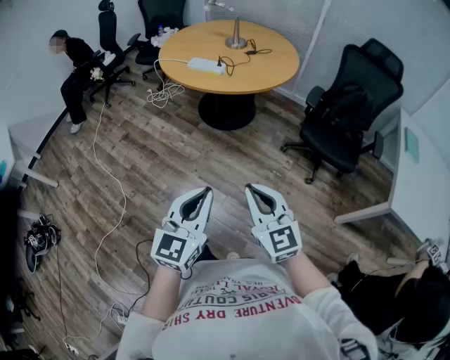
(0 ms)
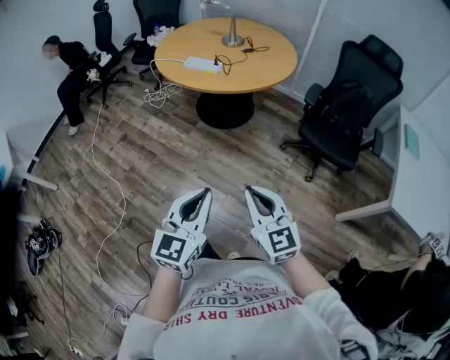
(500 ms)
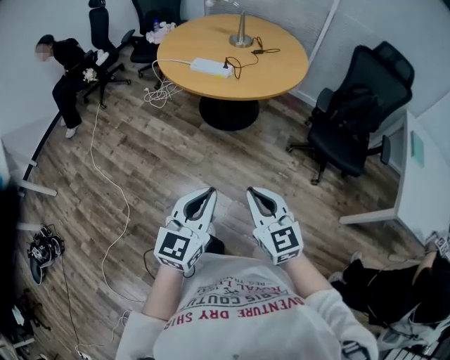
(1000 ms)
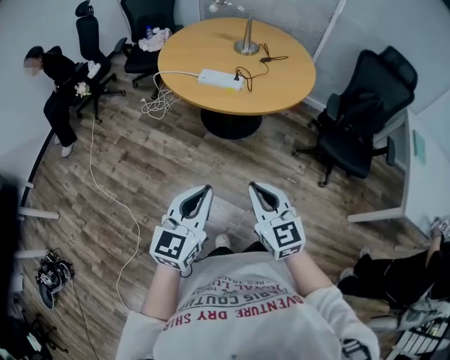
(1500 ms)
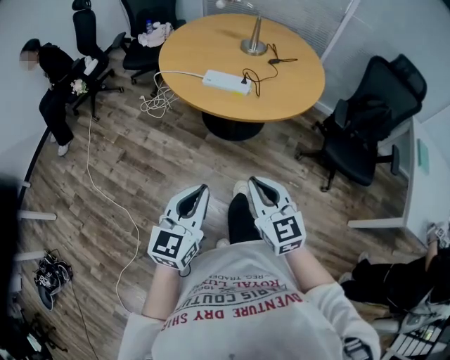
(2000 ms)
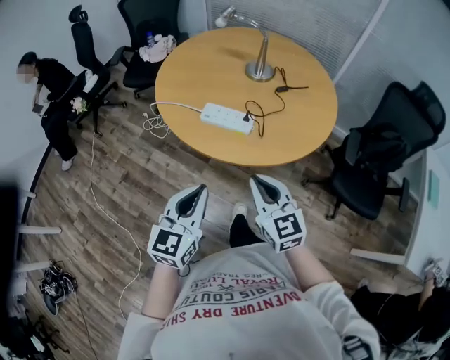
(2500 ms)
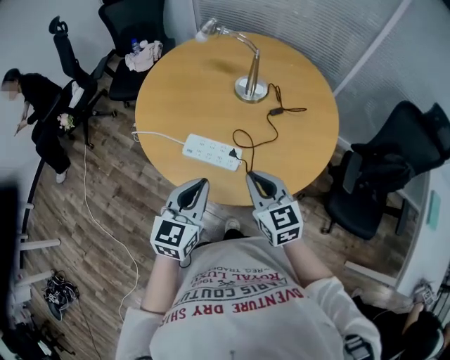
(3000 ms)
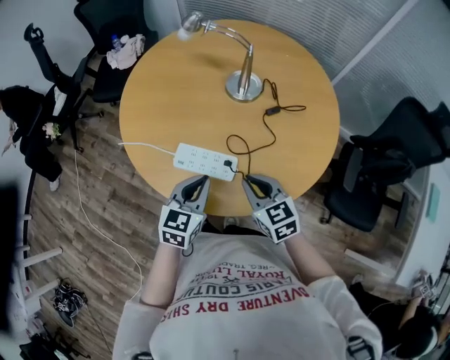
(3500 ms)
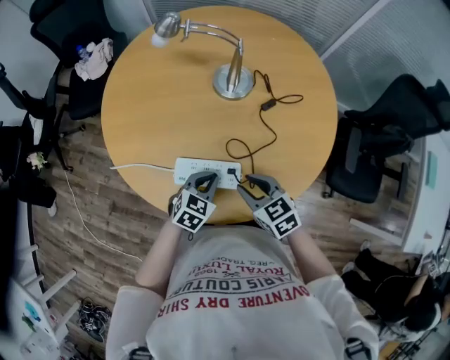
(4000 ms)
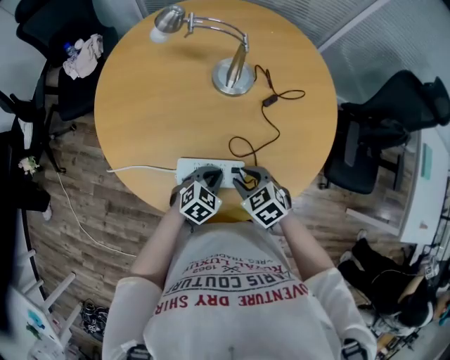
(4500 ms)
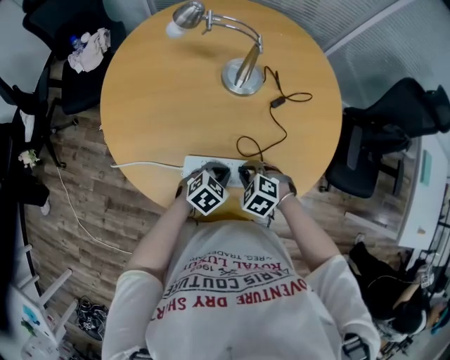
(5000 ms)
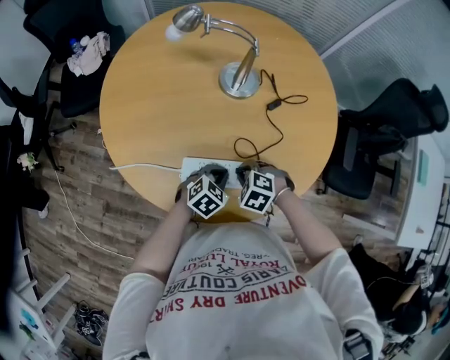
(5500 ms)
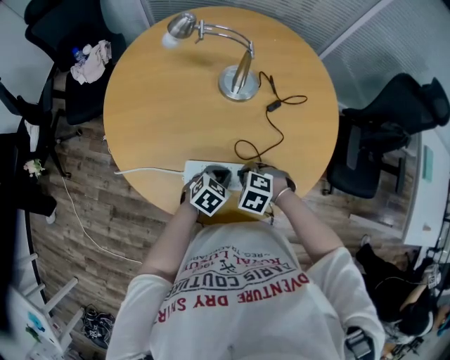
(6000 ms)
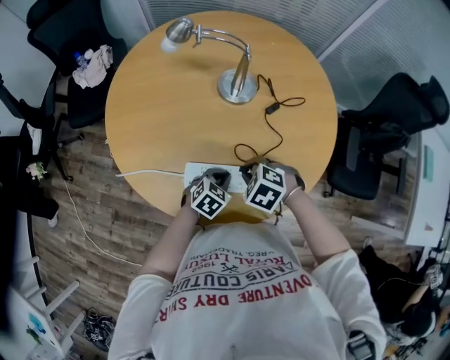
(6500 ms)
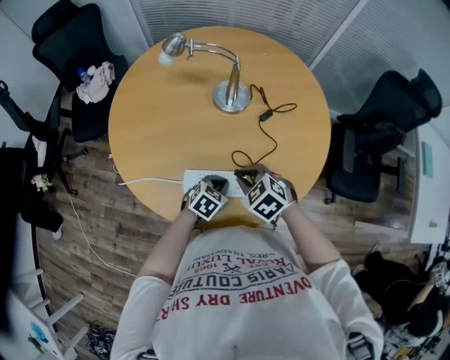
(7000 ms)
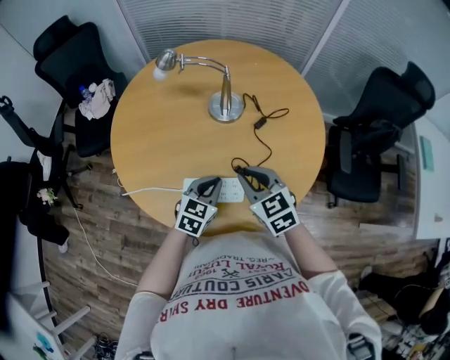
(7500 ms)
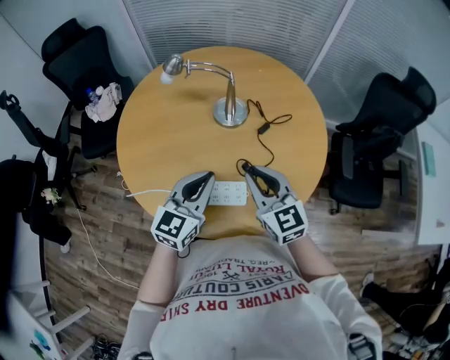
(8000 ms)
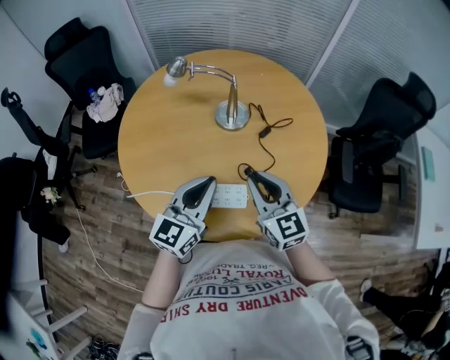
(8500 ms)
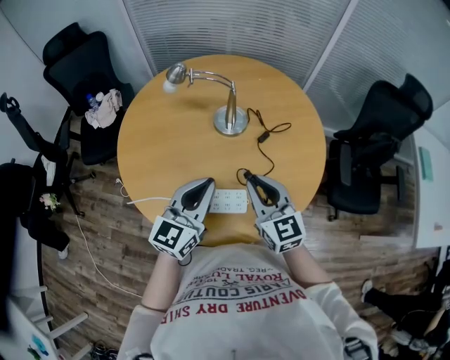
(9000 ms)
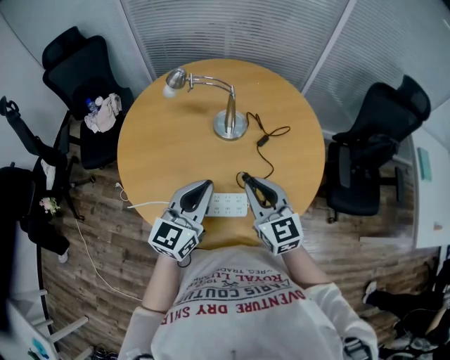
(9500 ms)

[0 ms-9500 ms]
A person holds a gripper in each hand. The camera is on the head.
0 ms to 2000 ms: Both grippers move forward and to the left, roughly 35 cm.
2000 ms to 4000 ms: The two grippers travel together, forward, approximately 50 cm. The right gripper swivels approximately 30 degrees, and opens. Meanwhile the left gripper is displaced downward by about 25 cm, and tilts its fingers about 40 degrees downward.
4000 ms to 5500 ms: The right gripper travels downward by approximately 10 cm, and angles its fingers downward, by approximately 30 degrees.
5500 ms to 7500 ms: The left gripper travels upward by approximately 10 cm, and rotates roughly 20 degrees. The right gripper moves upward, some 20 cm, and points its fingers about 40 degrees further upward.
7500 ms to 9500 ms: The right gripper is displaced upward by approximately 5 cm, and changes its angle by roughly 20 degrees, while the left gripper heads upward, covering roughly 20 cm, and rotates about 30 degrees.

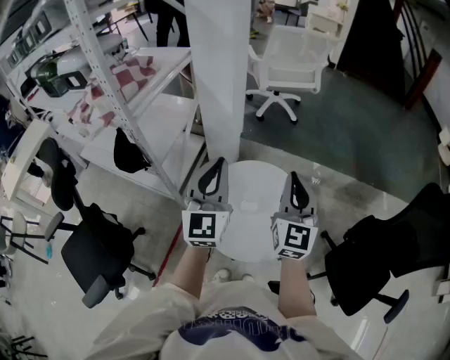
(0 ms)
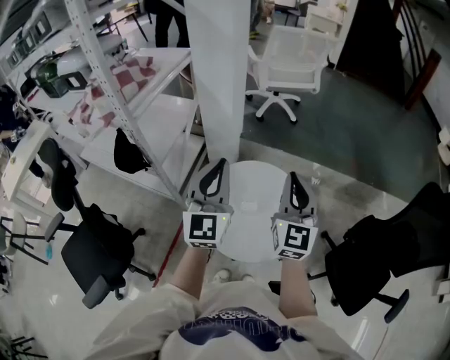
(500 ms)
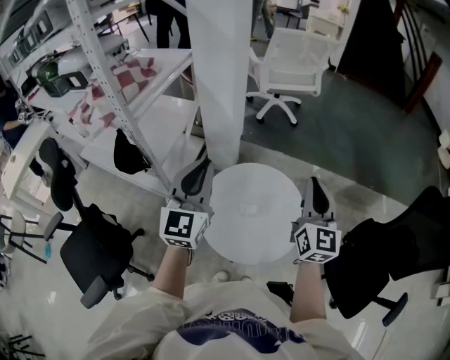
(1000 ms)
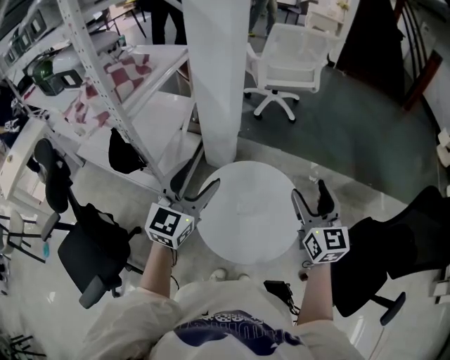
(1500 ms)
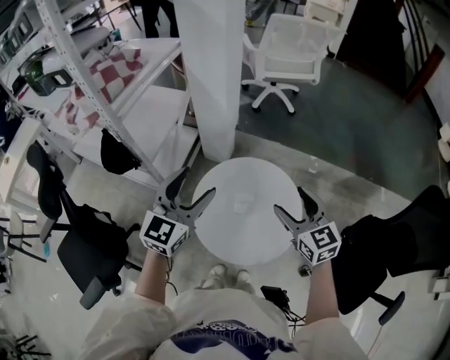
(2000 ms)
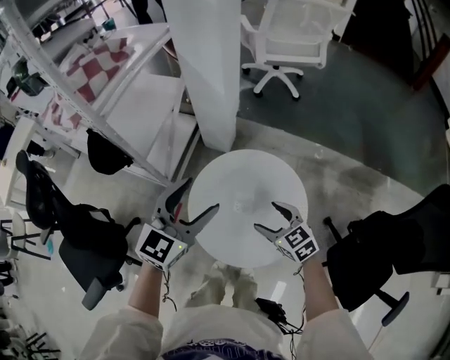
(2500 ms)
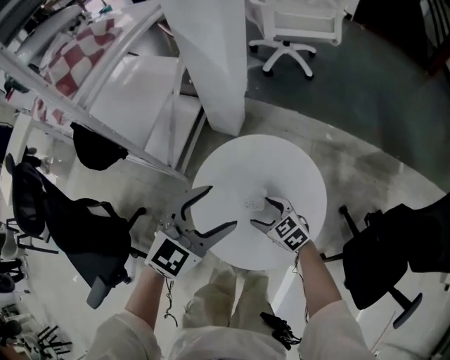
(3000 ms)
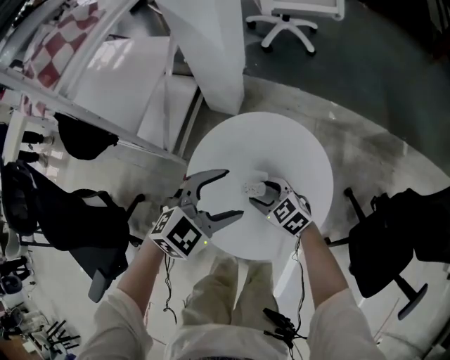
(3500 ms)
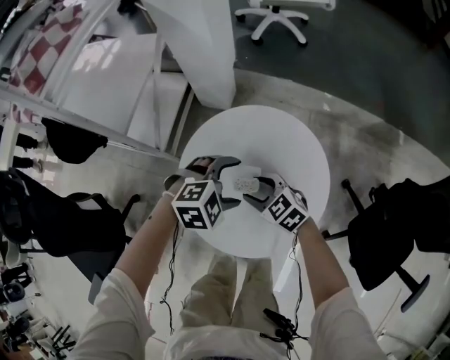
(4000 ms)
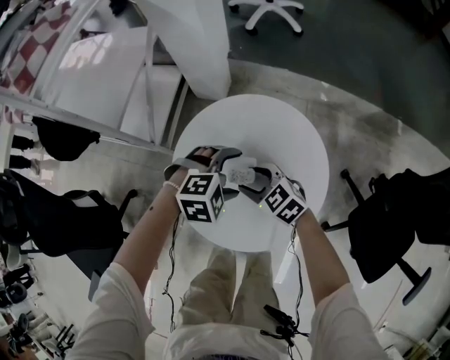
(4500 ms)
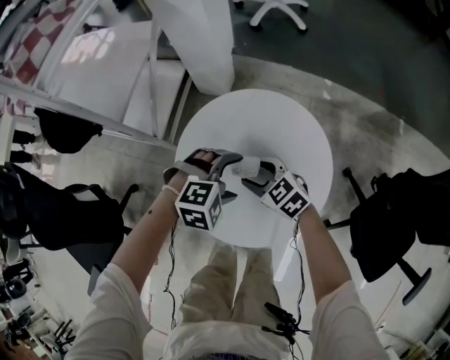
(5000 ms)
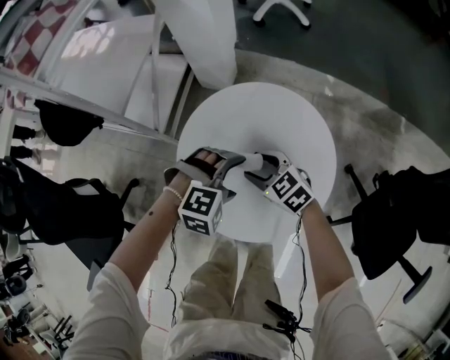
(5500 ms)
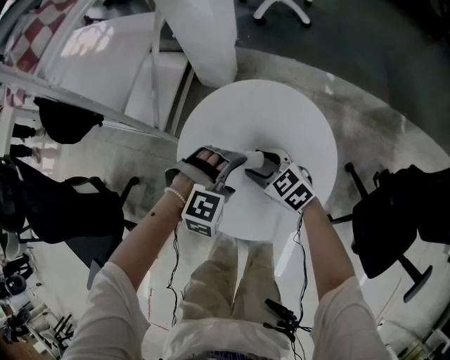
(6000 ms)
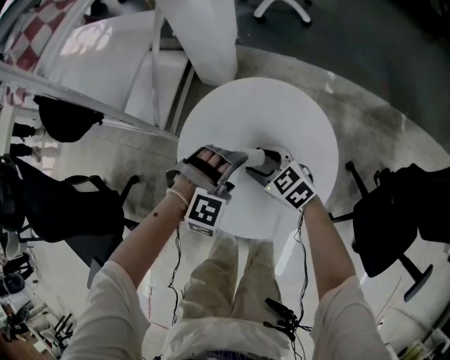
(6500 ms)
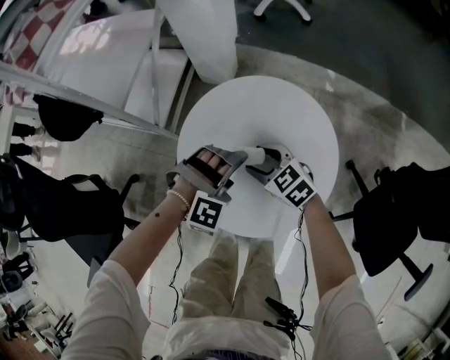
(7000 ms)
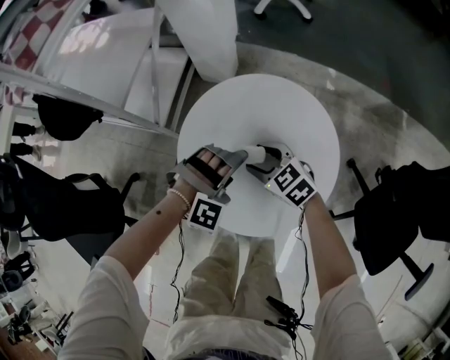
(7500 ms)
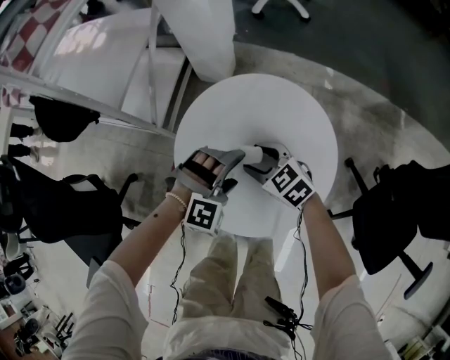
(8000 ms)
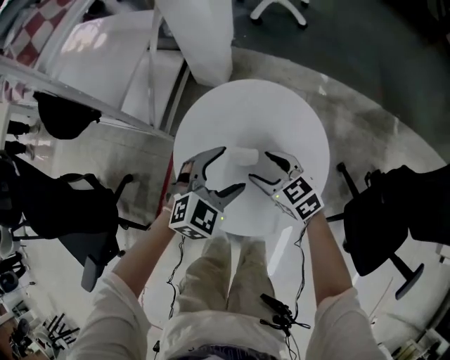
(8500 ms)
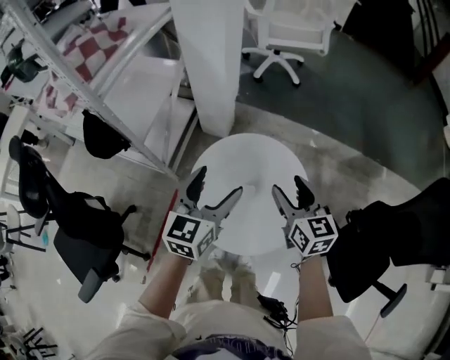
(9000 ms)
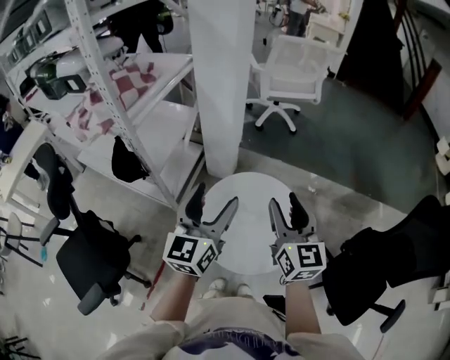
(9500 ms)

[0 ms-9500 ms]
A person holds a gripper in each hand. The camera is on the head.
0 ms to 2000 ms: The right gripper heads downward, covering roughly 10 cm, swivels about 40 degrees, and opens its fingers. Meanwhile the left gripper travels downward by some 5 cm, changes its angle by roughly 20 degrees, and opens.
2000 ms to 4000 ms: The two grippers go about 30 cm downward. The right gripper rotates approximately 30 degrees; the left gripper tips its fingers downward by some 50 degrees.
4000 ms to 5500 ms: The left gripper changes place by roughly 5 cm.
5500 ms to 7500 ms: There are only small adjustments of the grippers.
7500 ms to 9500 ms: The grippers both shift upward by roughly 40 cm. The left gripper angles its fingers upward, by approximately 60 degrees. The right gripper points its fingers roughly 40 degrees further upward.

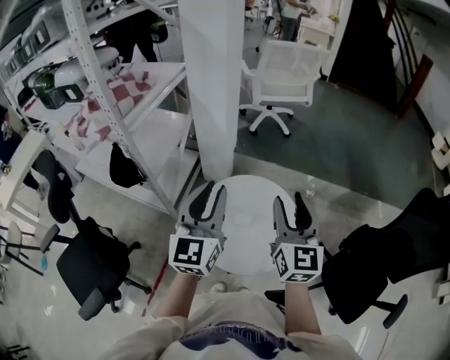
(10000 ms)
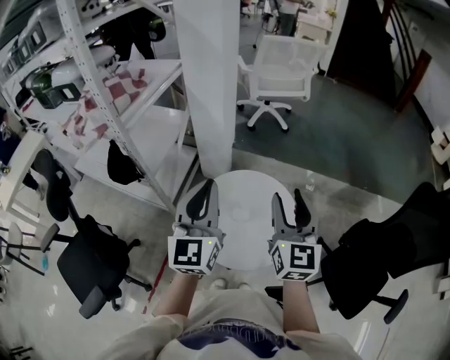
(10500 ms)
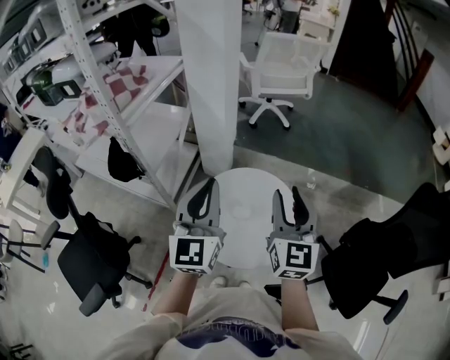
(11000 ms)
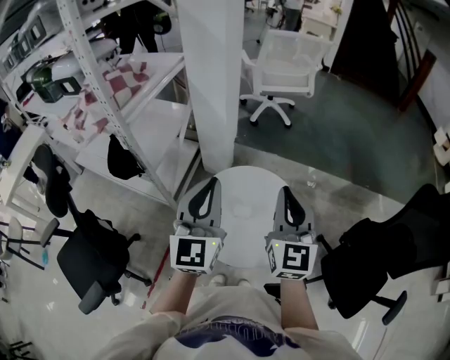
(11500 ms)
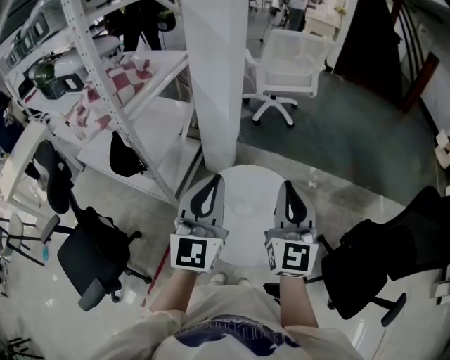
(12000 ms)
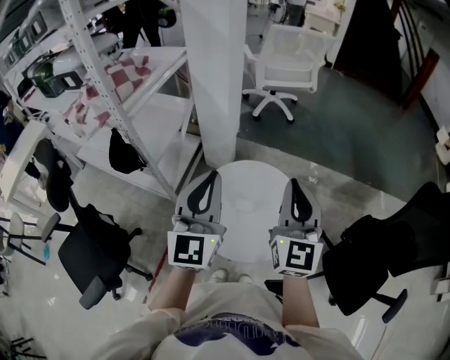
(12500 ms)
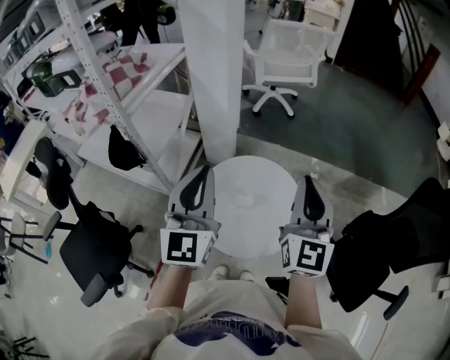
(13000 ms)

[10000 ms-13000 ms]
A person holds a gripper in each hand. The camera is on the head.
10000 ms to 11500 ms: The right gripper closes up.
11500 ms to 13000 ms: The grippers move only a little.

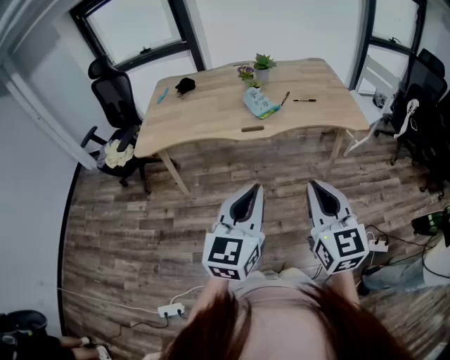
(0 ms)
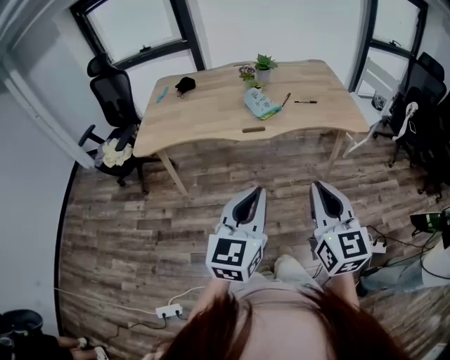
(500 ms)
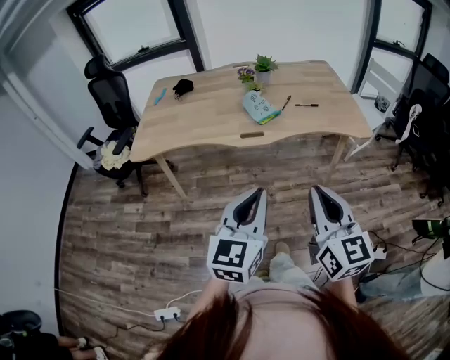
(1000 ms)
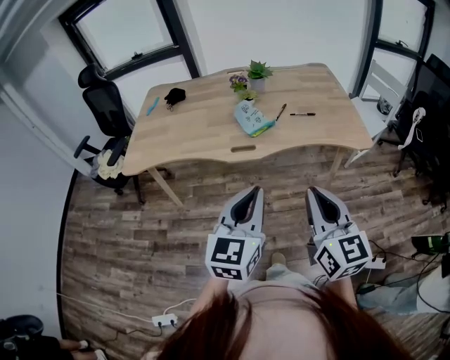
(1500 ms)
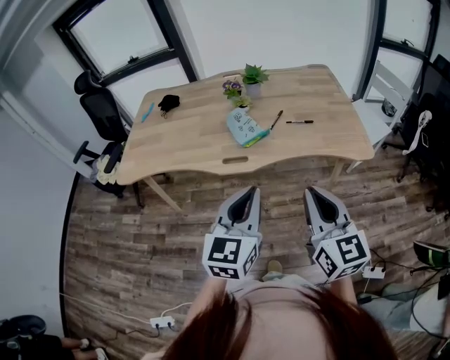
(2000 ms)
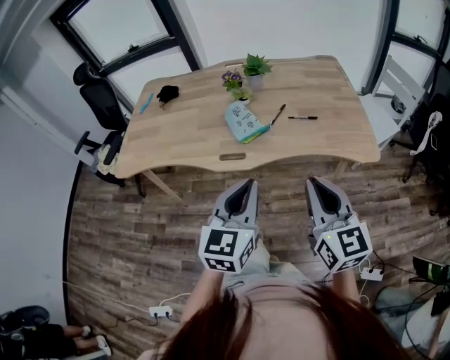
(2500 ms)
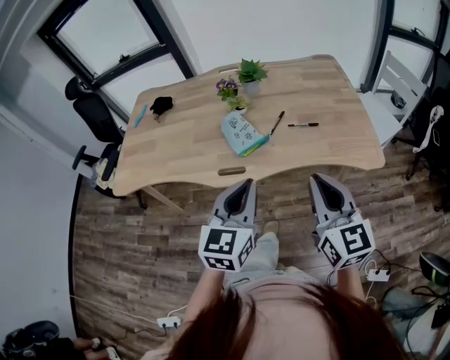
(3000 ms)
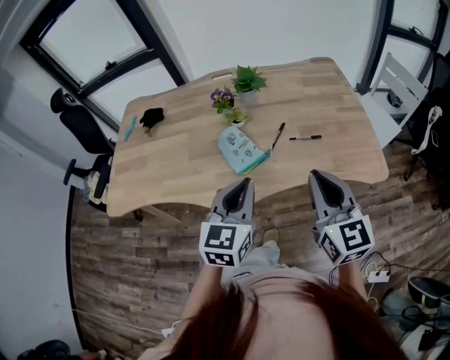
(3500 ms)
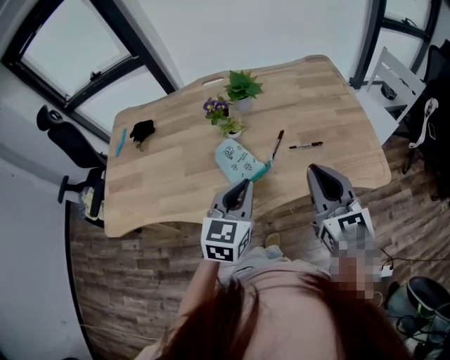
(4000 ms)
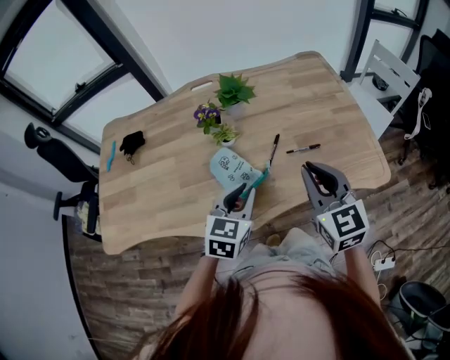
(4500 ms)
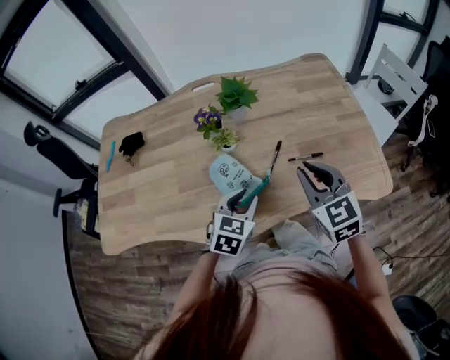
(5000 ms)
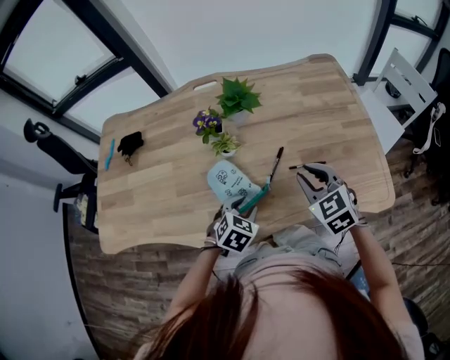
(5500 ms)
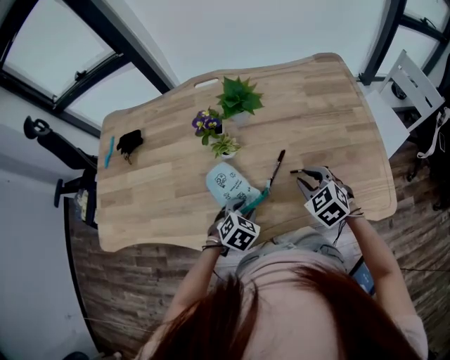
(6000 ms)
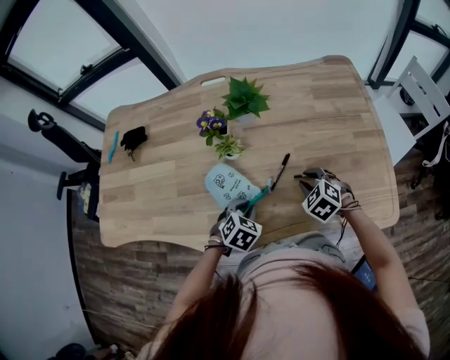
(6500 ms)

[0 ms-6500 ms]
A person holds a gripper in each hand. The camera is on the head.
0 ms to 2000 ms: The two grippers go roughly 20 cm forward and to the right.
2000 ms to 4500 ms: The left gripper shifts some 35 cm forward and downward, and turns by about 30 degrees; the right gripper shifts roughly 35 cm forward.
4500 ms to 6500 ms: The left gripper goes some 15 cm downward, points its fingers about 30 degrees further downward, and opens and closes again. Meanwhile the right gripper moves downward and forward, some 30 cm, and tilts its fingers approximately 40 degrees downward.
